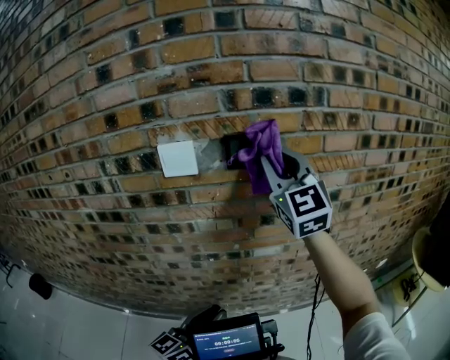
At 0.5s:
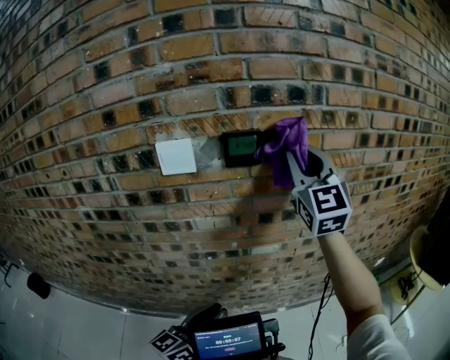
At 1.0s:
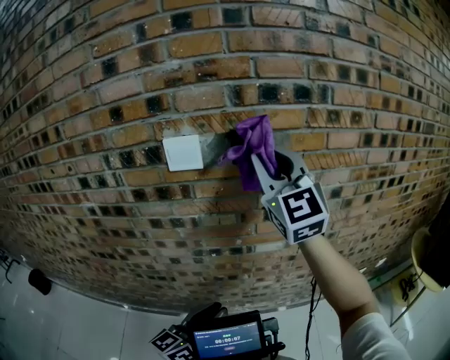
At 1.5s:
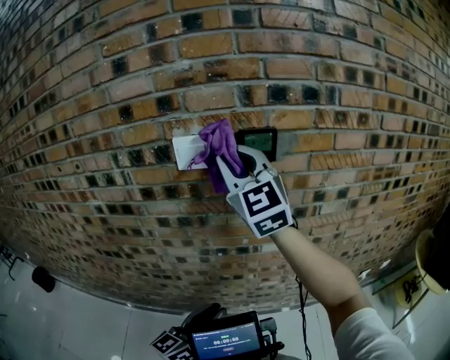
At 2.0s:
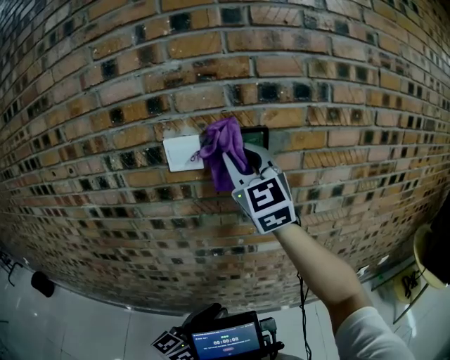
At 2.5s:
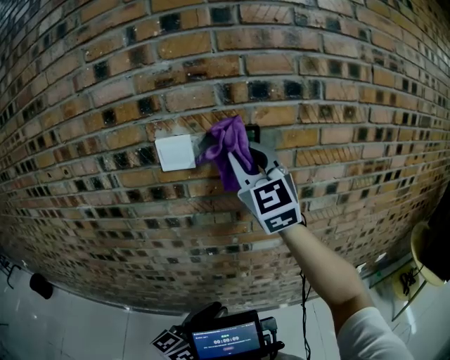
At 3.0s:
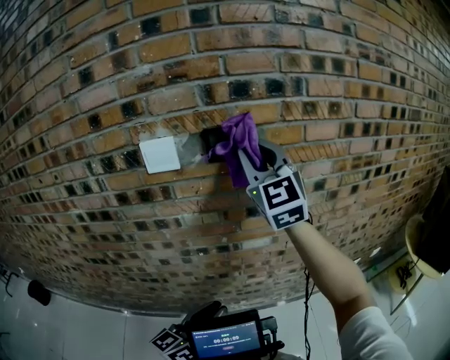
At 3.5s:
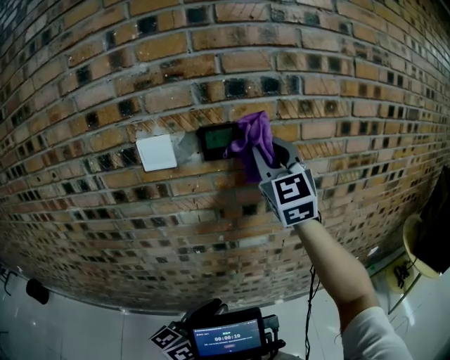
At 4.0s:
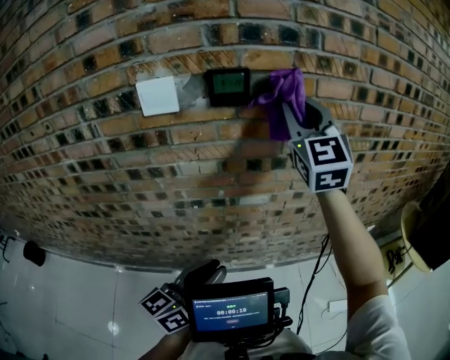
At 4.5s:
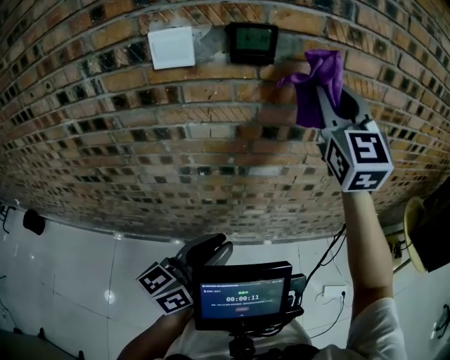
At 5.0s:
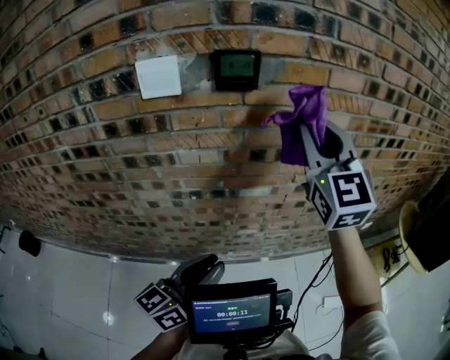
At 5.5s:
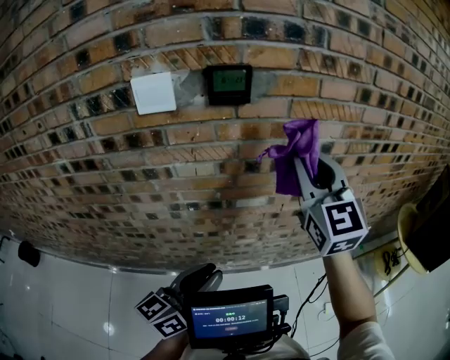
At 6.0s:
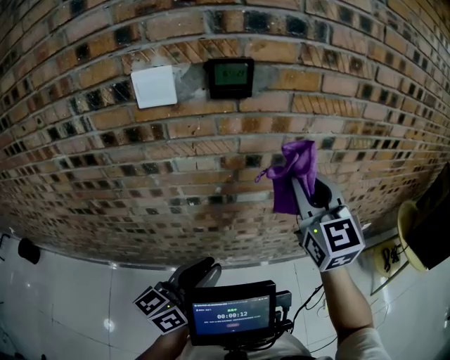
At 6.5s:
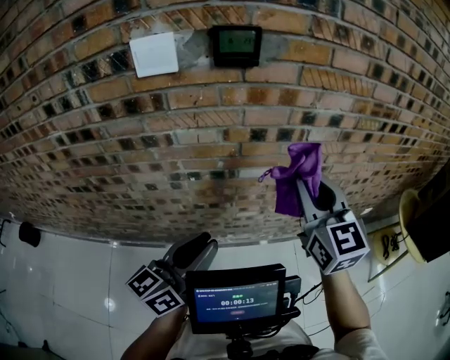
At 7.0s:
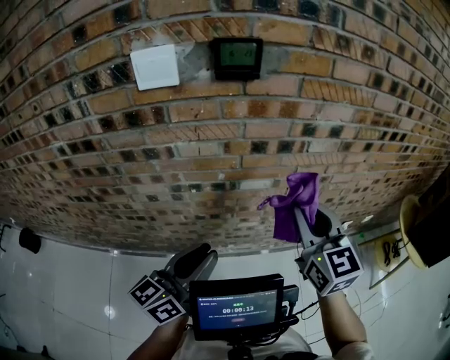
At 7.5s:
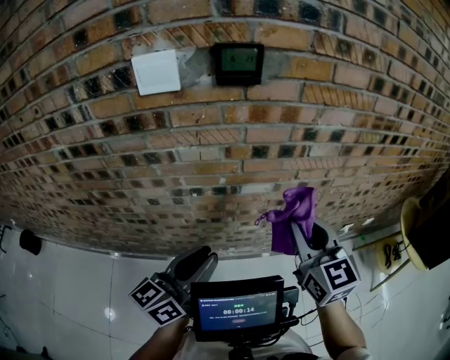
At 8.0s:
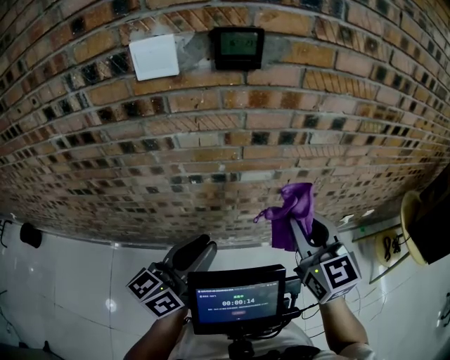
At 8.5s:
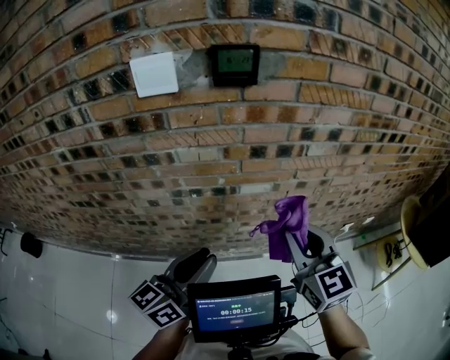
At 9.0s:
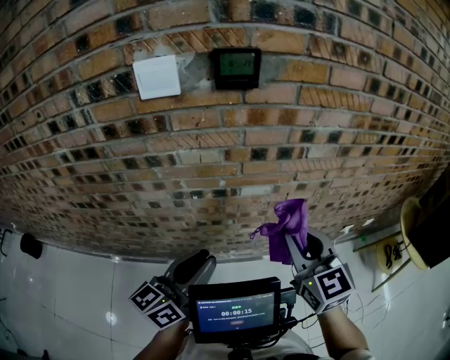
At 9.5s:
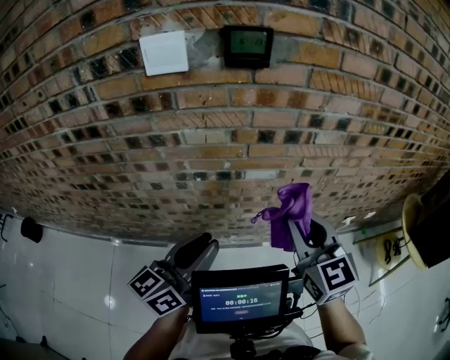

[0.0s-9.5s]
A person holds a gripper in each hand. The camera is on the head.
0.0s to 2.0s: The right gripper moves to the left, about 10 cm.
2.0s to 4.0s: The left gripper moves to the right, about 5 cm; the right gripper shifts some 20 cm to the right.
4.0s to 5.5s: The right gripper is displaced downward and backward by roughly 10 cm.
5.5s to 7.5s: The right gripper goes roughly 15 cm downward and backward, and rotates about 20 degrees.
7.5s to 9.5s: The grippers move only a little.

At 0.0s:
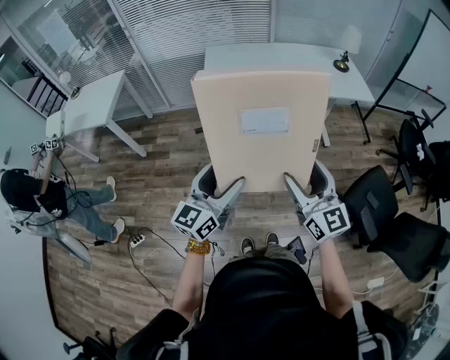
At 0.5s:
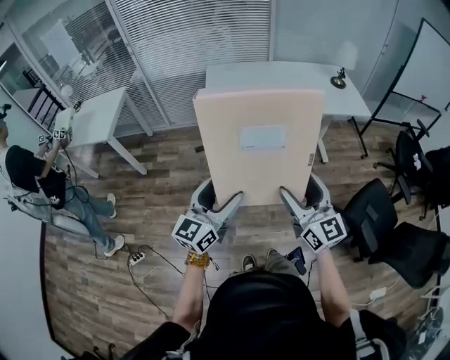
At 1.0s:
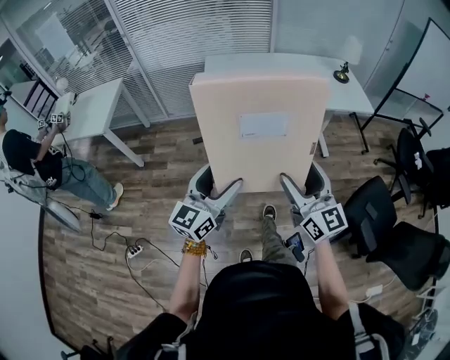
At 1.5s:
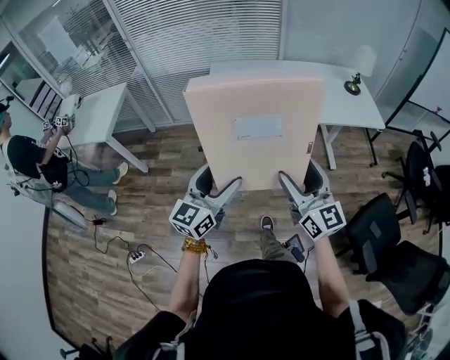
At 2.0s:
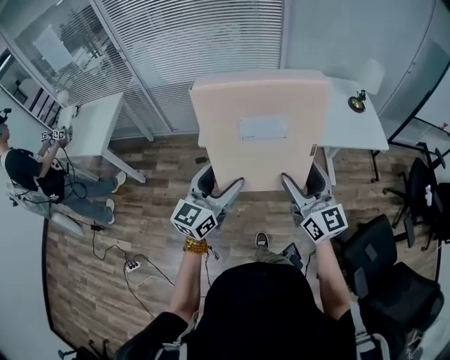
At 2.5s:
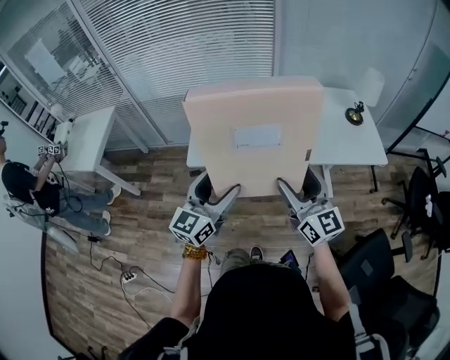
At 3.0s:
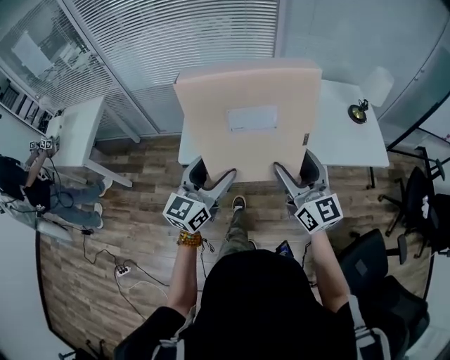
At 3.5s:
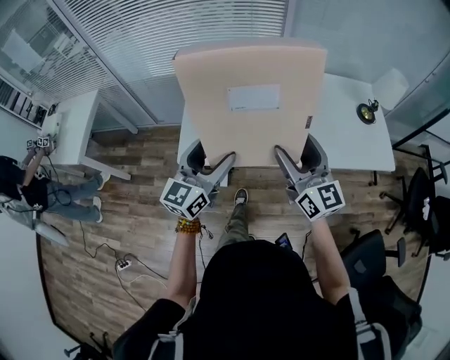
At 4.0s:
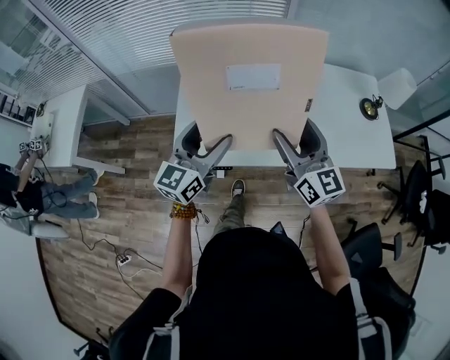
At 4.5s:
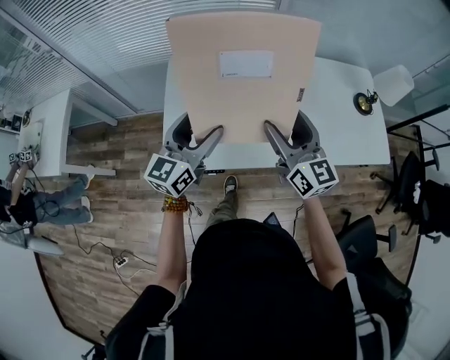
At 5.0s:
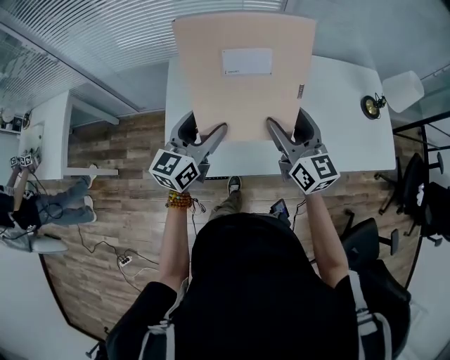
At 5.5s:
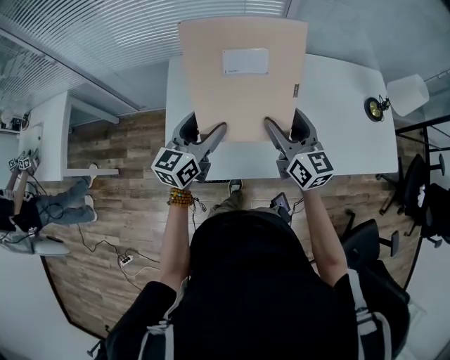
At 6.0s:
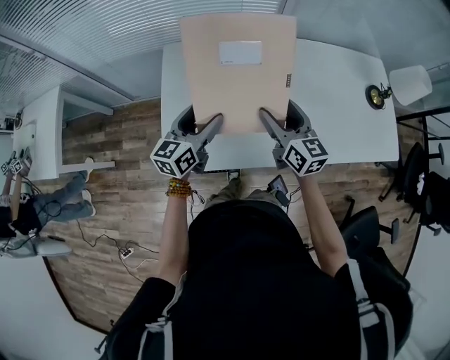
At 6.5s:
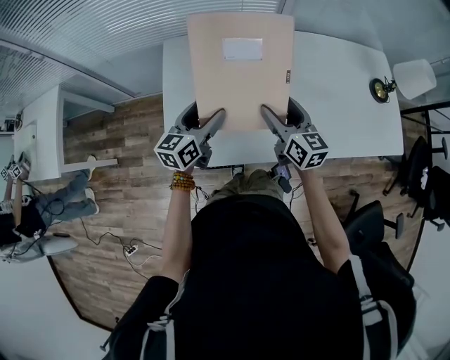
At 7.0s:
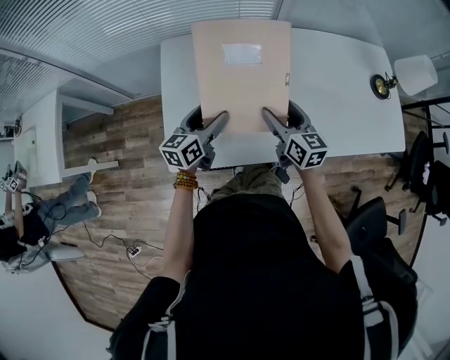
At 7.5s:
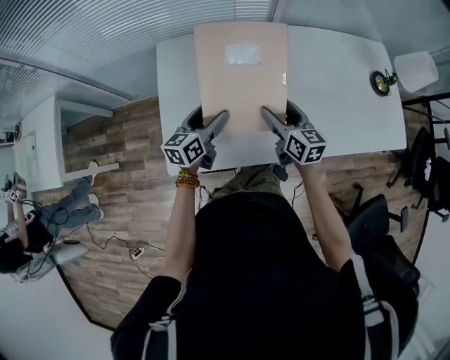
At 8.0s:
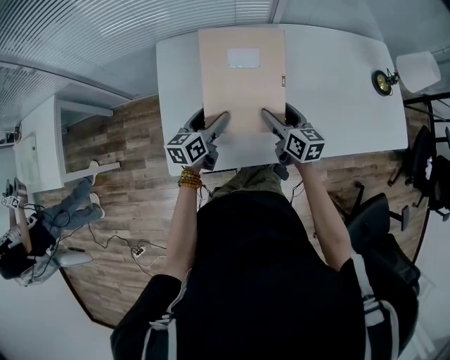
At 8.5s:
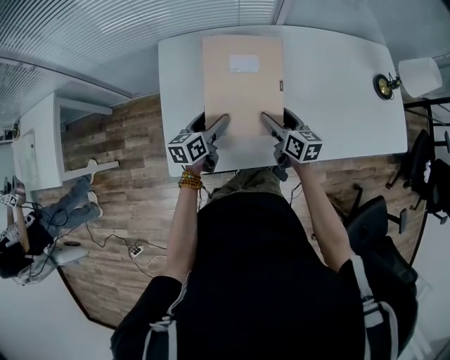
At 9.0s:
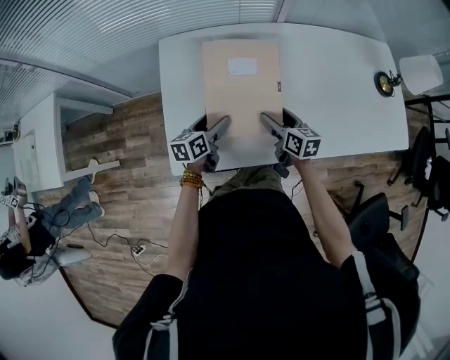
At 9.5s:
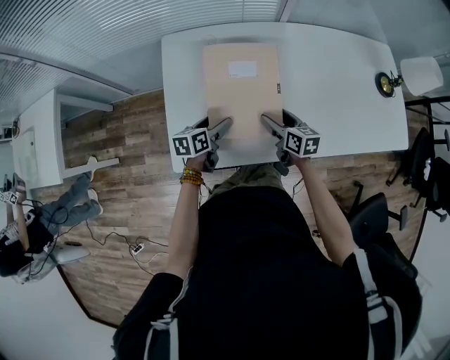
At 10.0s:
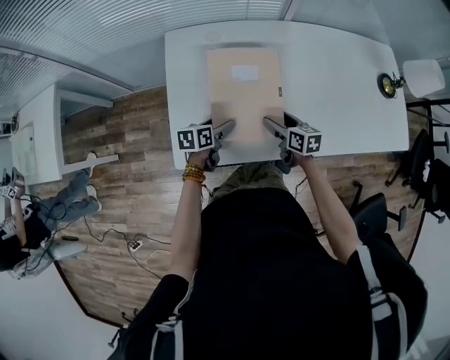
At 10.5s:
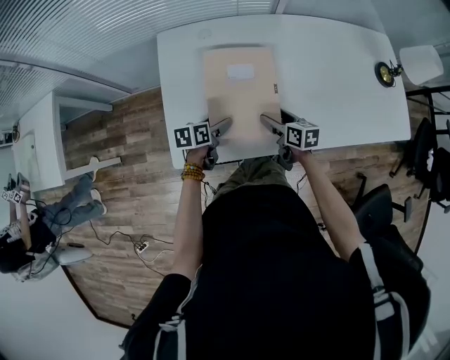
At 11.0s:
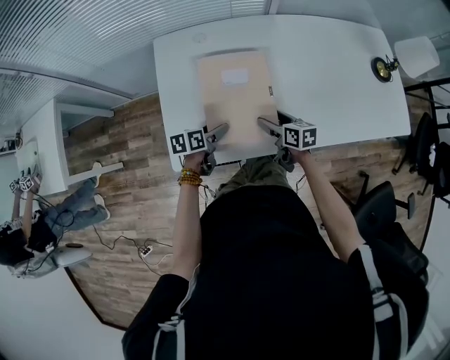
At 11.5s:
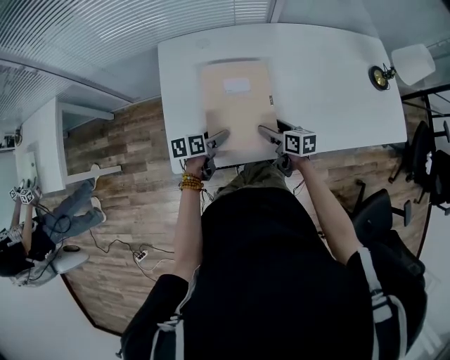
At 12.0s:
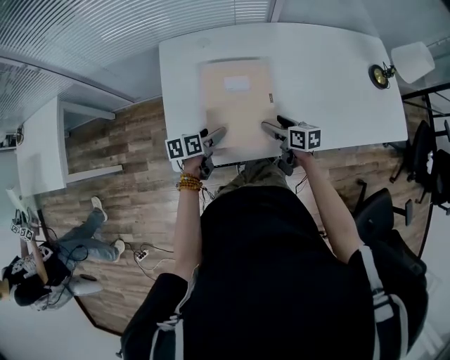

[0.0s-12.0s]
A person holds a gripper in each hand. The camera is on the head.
0.0s to 2.0s: Both grippers travel together forward, some 25 cm.
2.0s to 4.0s: The grippers both shift forward by about 35 cm.
4.0s to 6.0s: The two grippers go roughly 20 cm forward and downward.
6.0s to 8.0s: Both grippers move downward, roughly 10 cm.
8.0s to 10.0s: The two grippers go approximately 10 cm downward. The left gripper swivels about 20 degrees.
10.0s to 12.0s: The grippers move only a little.

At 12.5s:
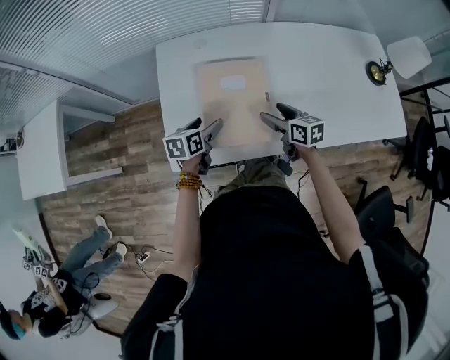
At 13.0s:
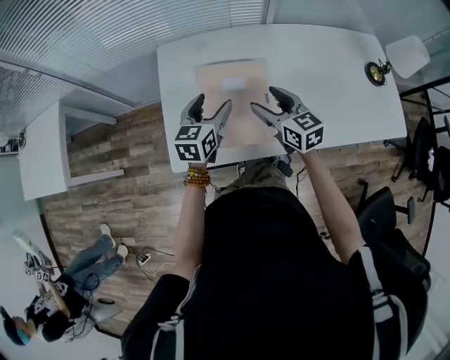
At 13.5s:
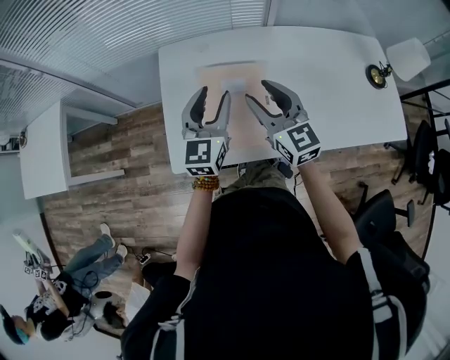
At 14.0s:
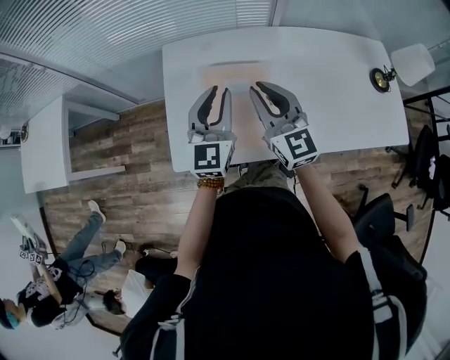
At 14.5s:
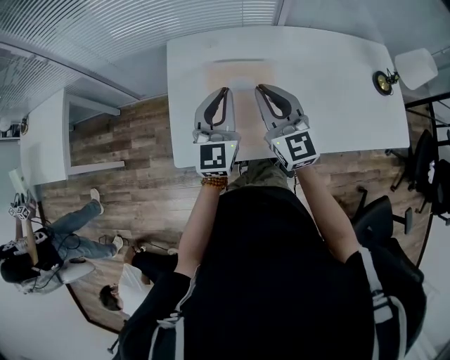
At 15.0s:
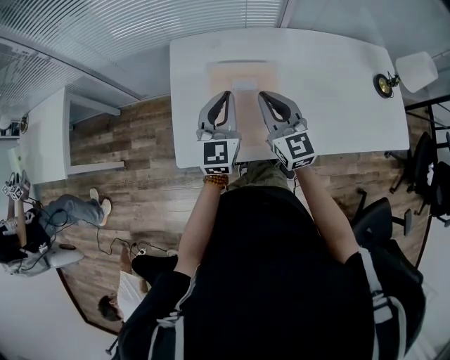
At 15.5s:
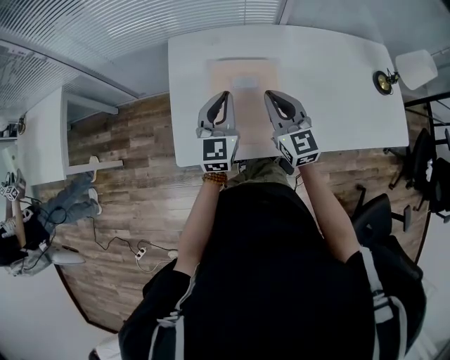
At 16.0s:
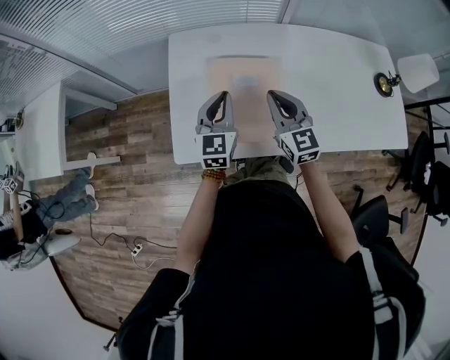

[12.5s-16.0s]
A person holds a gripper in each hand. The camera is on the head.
12.5s to 14.5s: Both grippers travel together upward, approximately 20 cm. The left gripper angles its fingers upward, by about 40 degrees, and closes up. The right gripper rotates roughly 50 degrees, and closes.
14.5s to 16.0s: Both grippers move downward, approximately 10 cm.

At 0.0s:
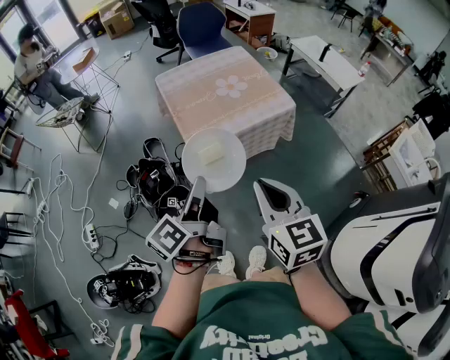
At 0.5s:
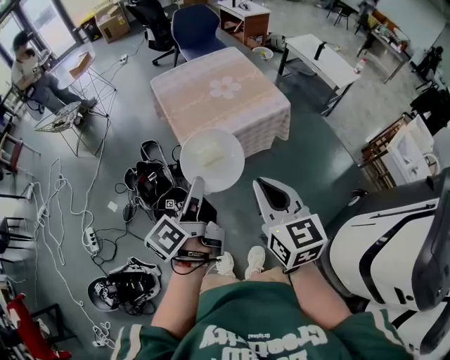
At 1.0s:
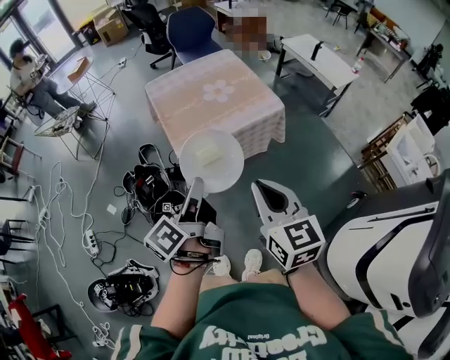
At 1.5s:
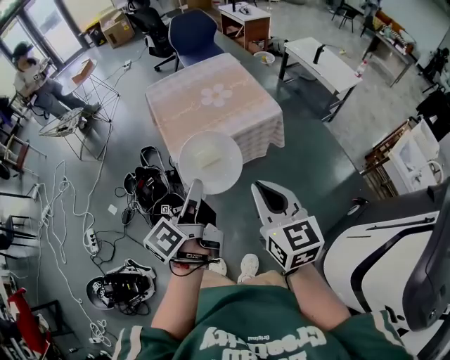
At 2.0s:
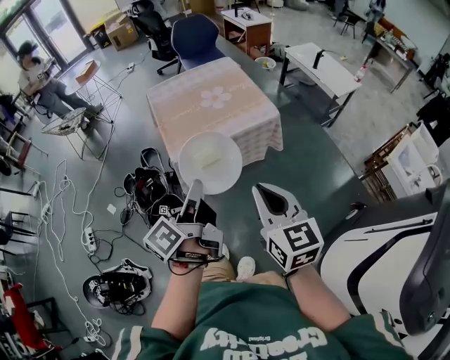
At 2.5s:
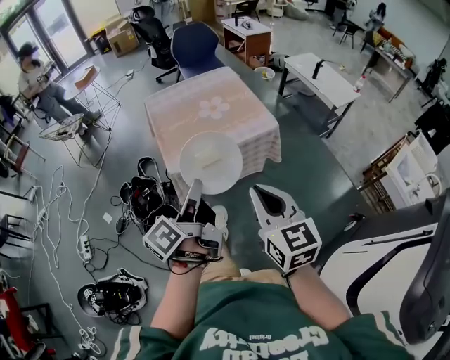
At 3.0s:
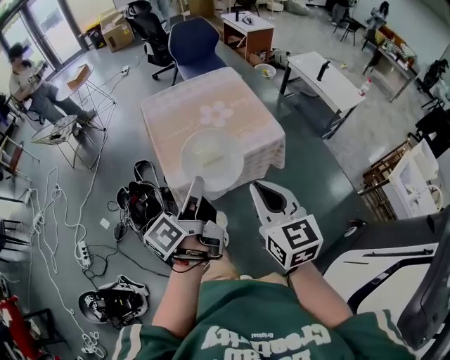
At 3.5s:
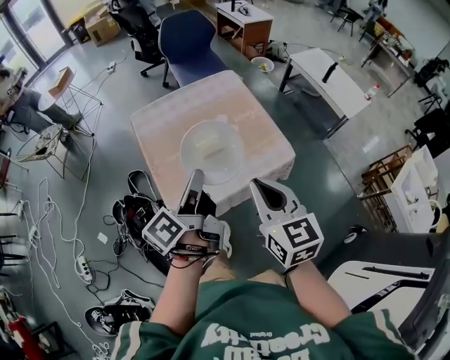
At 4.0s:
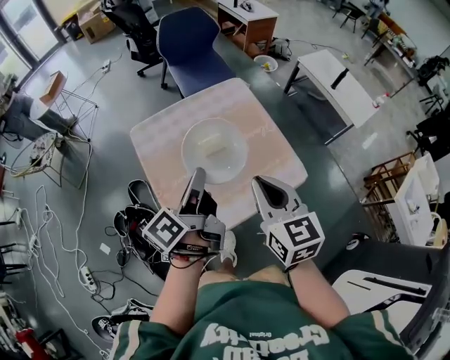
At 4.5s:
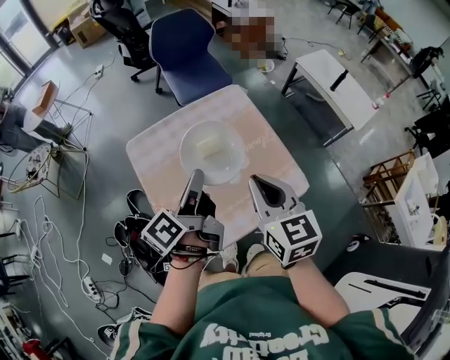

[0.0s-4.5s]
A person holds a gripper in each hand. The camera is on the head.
0.0s to 2.0s: Both grippers travel together to the right, about 10 cm.
2.0s to 4.5s: The two grippers travel together, forward, approximately 50 cm.
